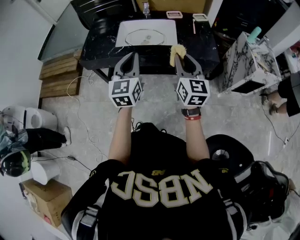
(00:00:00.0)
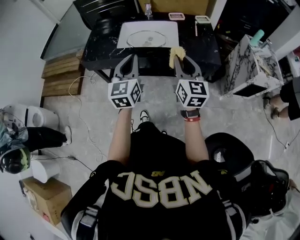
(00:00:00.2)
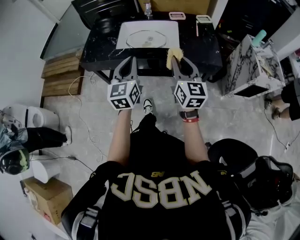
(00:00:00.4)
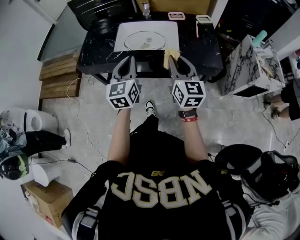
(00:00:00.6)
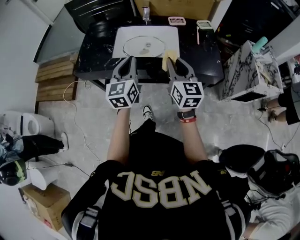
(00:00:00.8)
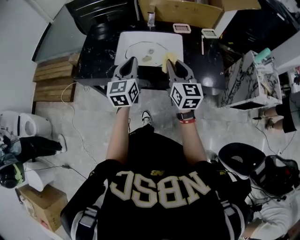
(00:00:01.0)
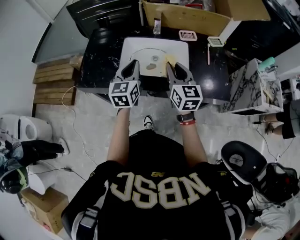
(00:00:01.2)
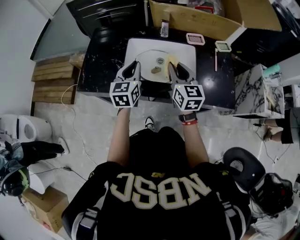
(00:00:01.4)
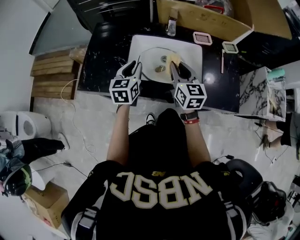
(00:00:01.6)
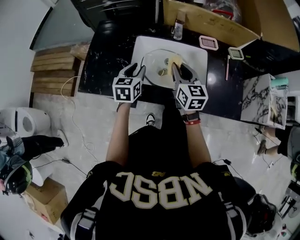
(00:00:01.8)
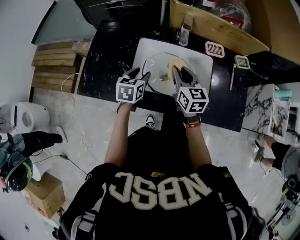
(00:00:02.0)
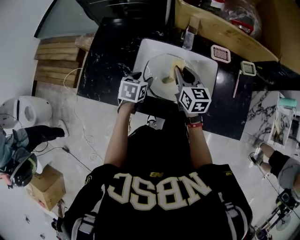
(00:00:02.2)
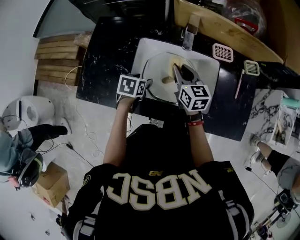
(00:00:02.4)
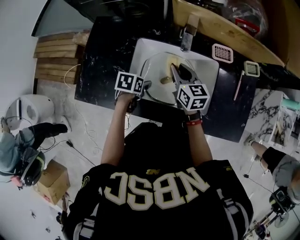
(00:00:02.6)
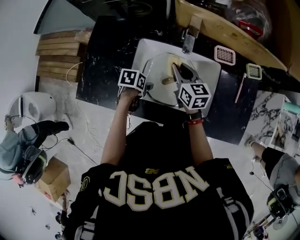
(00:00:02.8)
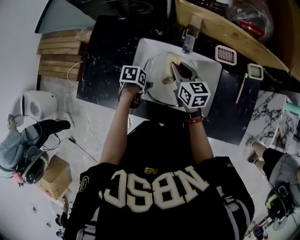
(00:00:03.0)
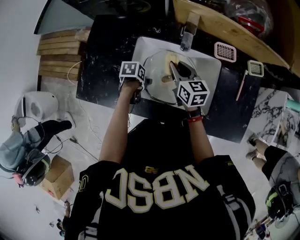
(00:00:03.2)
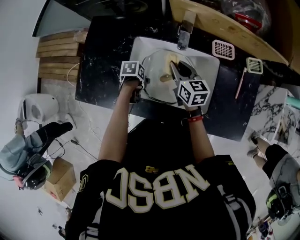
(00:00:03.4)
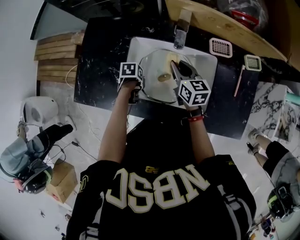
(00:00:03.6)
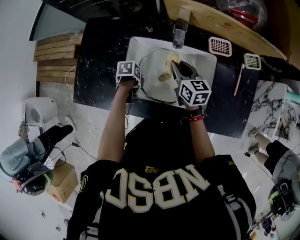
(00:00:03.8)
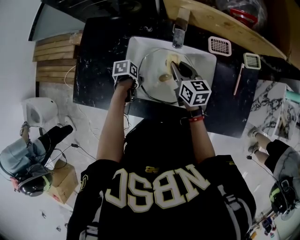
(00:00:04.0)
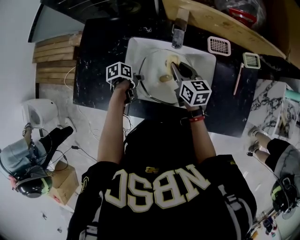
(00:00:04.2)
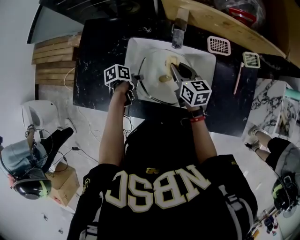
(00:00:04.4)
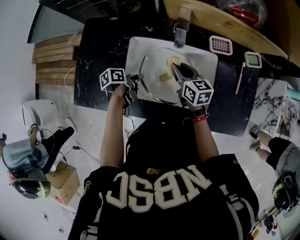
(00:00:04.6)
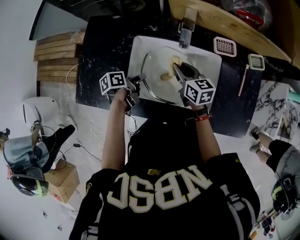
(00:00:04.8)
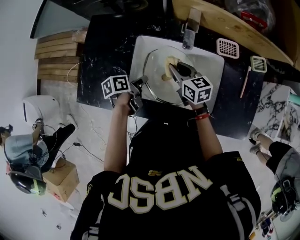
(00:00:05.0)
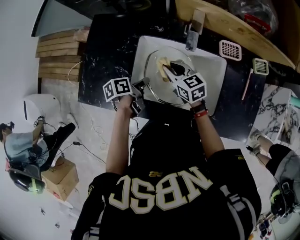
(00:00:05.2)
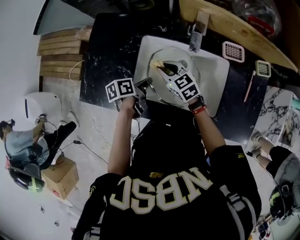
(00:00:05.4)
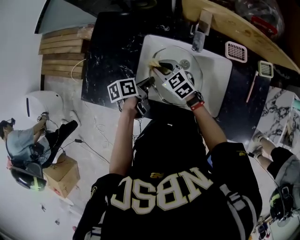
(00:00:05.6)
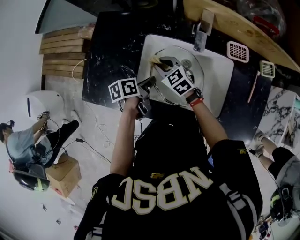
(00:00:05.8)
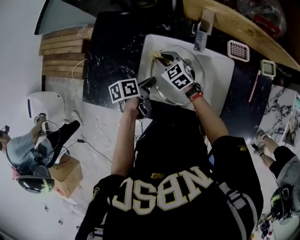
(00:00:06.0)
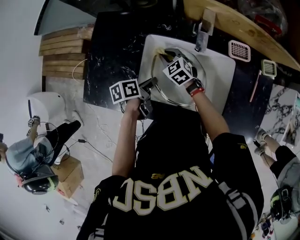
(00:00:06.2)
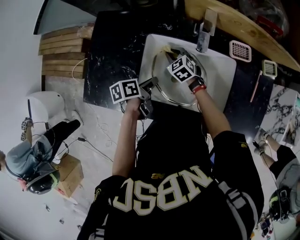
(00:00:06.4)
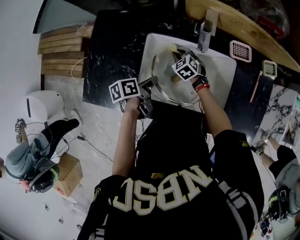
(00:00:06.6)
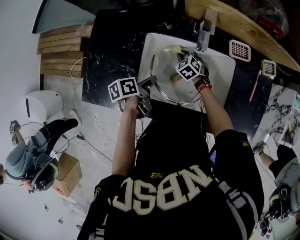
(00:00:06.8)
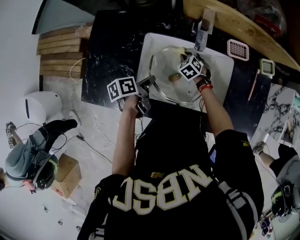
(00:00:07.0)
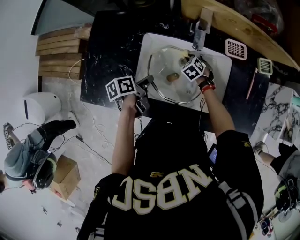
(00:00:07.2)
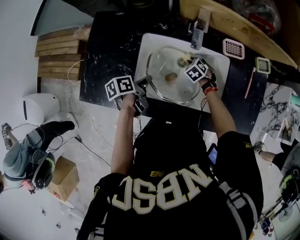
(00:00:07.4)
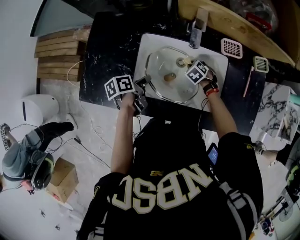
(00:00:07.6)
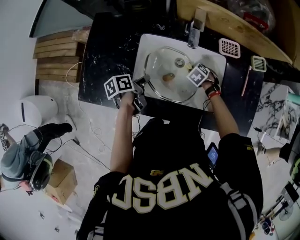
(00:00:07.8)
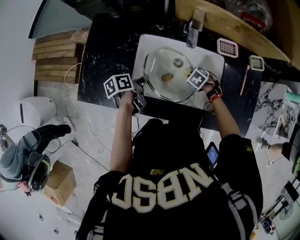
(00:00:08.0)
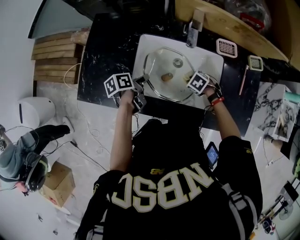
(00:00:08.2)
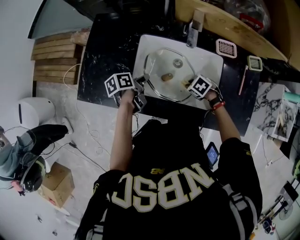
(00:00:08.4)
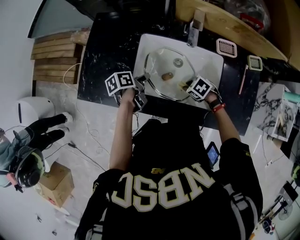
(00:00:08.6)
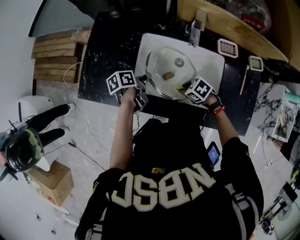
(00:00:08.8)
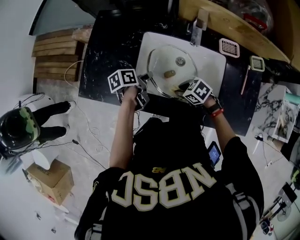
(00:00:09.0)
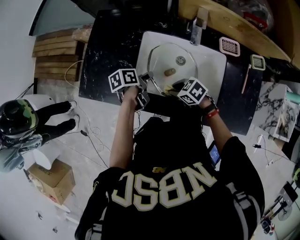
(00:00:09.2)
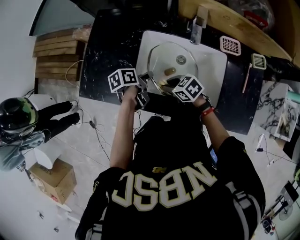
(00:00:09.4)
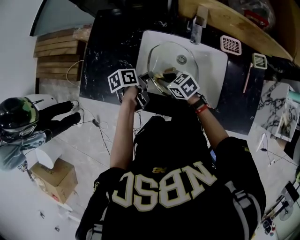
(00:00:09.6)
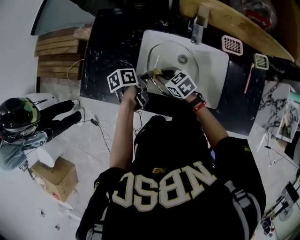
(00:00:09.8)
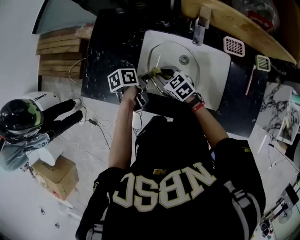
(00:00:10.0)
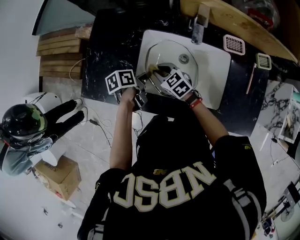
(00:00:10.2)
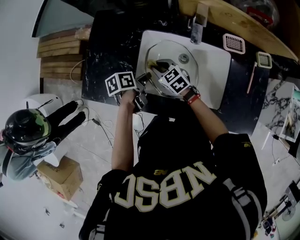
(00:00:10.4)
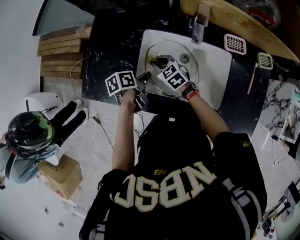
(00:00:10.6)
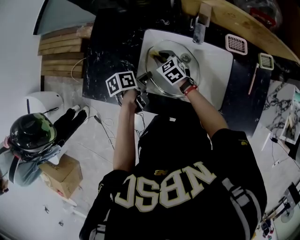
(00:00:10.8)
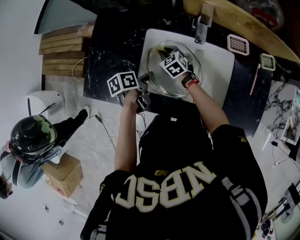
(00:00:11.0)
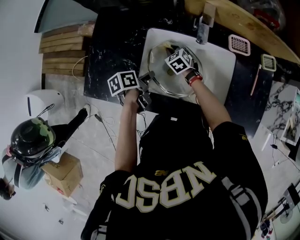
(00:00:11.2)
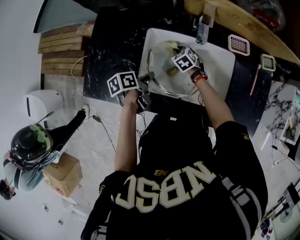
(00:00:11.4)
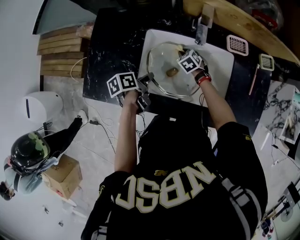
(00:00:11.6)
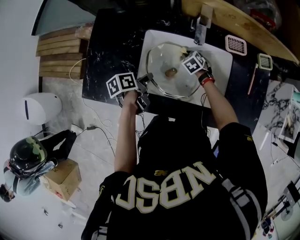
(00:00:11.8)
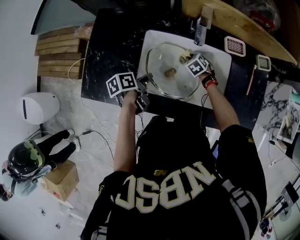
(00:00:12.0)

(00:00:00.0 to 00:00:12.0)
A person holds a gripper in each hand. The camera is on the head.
00:00:00.0 - 00:00:01.6: The right gripper moves roughly 35 cm.
00:00:01.6 - 00:00:03.0: The right gripper shifts by some 20 cm, and rotates about 20 degrees.
00:00:04.4 - 00:00:06.0: The right gripper ends up about 15 cm from where it was, and changes its angle by roughly 40 degrees.
00:00:06.0 - 00:00:07.6: The right gripper changes place by some 25 cm, and angles its fingers downward, by about 40 degrees.
00:00:07.6 - 00:00:09.0: The right gripper ends up about 20 cm from where it was, and swivels roughly 40 degrees.
00:00:09.0 - 00:00:10.4: The right gripper moves some 15 cm, and swivels some 30 degrees.
00:00:10.4 - 00:00:12.0: The right gripper moves some 25 cm, and changes its angle by some 30 degrees.

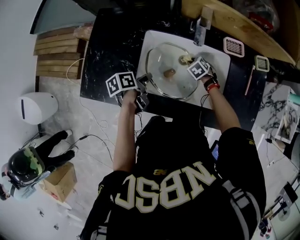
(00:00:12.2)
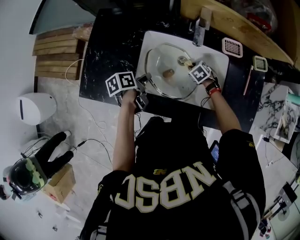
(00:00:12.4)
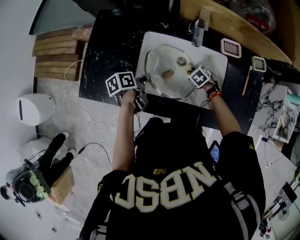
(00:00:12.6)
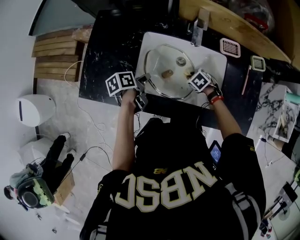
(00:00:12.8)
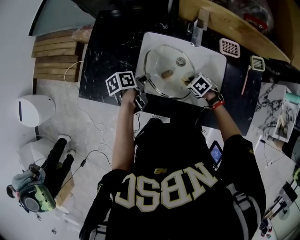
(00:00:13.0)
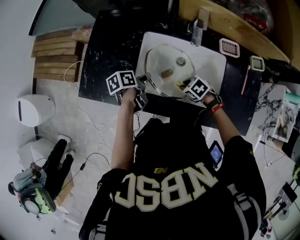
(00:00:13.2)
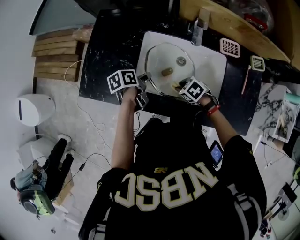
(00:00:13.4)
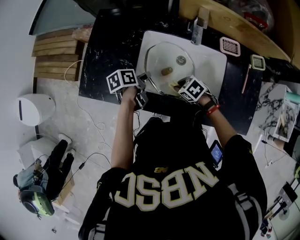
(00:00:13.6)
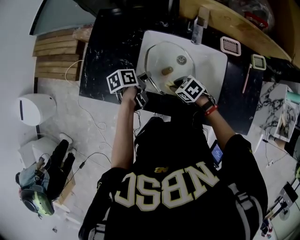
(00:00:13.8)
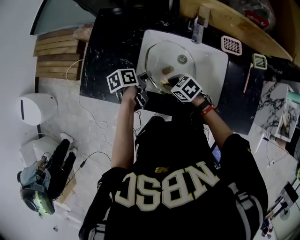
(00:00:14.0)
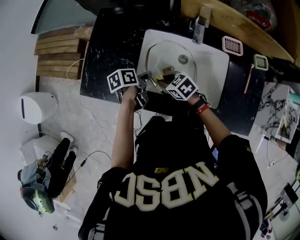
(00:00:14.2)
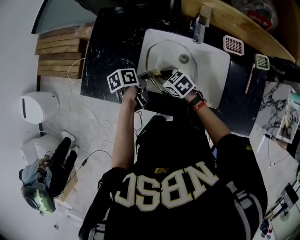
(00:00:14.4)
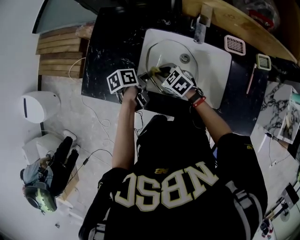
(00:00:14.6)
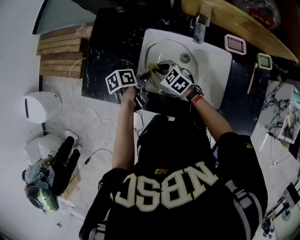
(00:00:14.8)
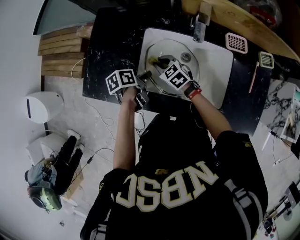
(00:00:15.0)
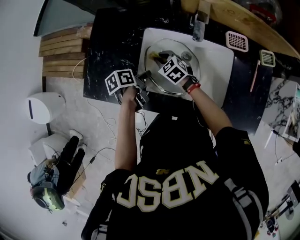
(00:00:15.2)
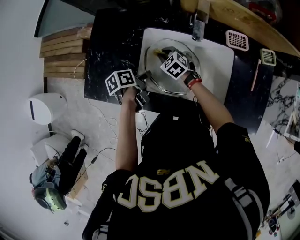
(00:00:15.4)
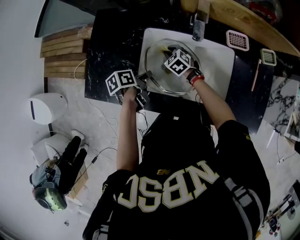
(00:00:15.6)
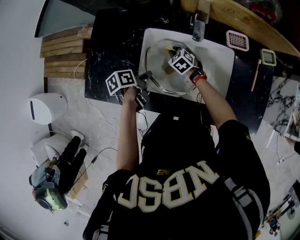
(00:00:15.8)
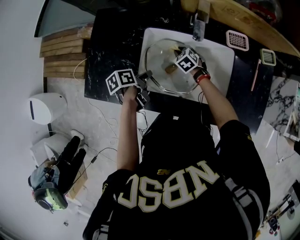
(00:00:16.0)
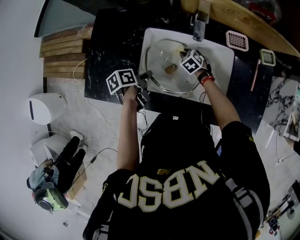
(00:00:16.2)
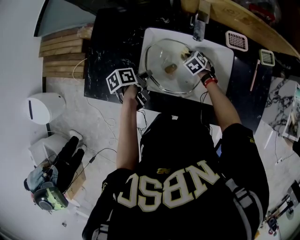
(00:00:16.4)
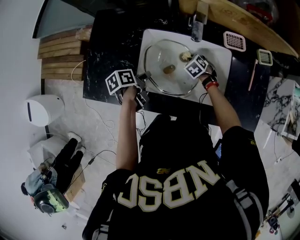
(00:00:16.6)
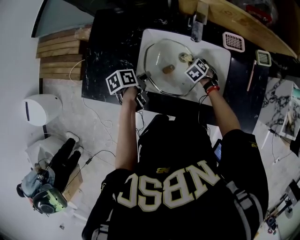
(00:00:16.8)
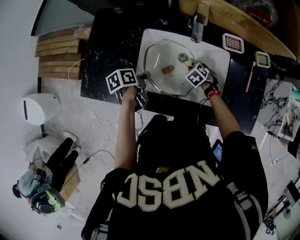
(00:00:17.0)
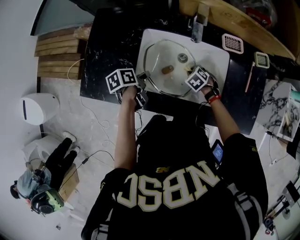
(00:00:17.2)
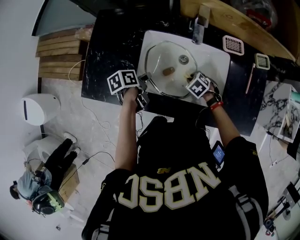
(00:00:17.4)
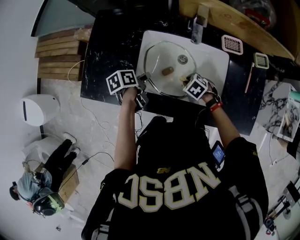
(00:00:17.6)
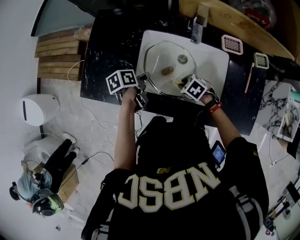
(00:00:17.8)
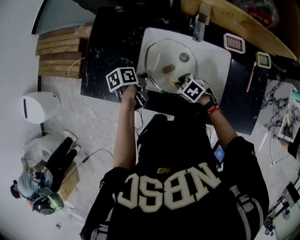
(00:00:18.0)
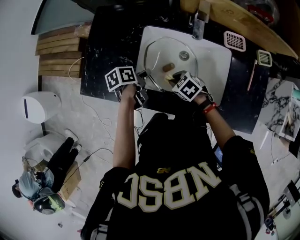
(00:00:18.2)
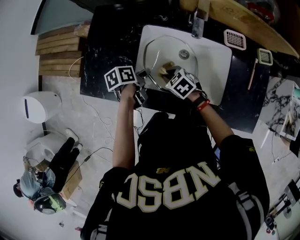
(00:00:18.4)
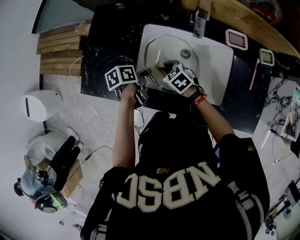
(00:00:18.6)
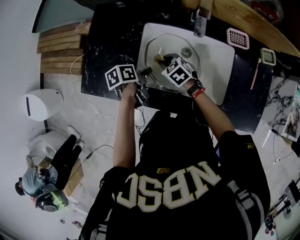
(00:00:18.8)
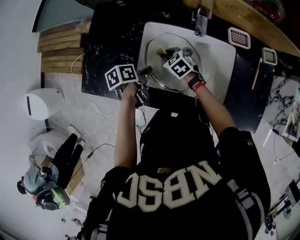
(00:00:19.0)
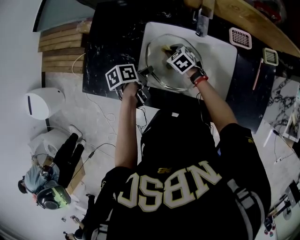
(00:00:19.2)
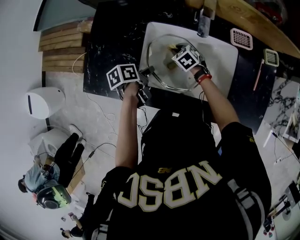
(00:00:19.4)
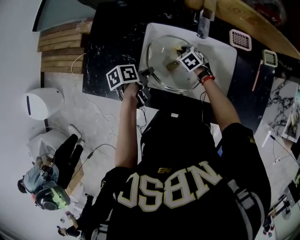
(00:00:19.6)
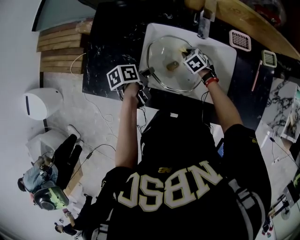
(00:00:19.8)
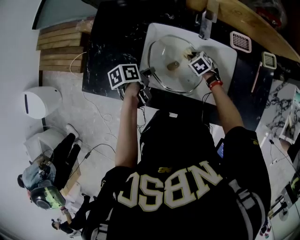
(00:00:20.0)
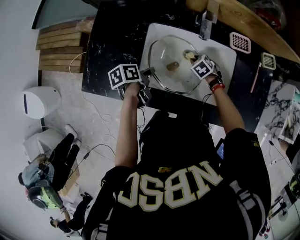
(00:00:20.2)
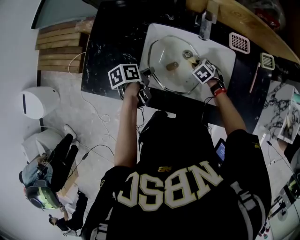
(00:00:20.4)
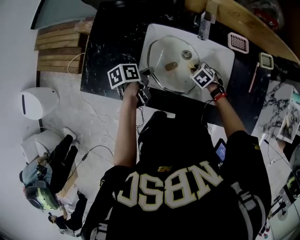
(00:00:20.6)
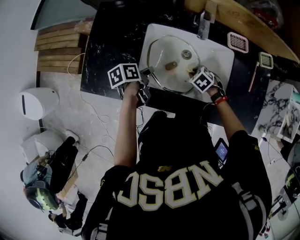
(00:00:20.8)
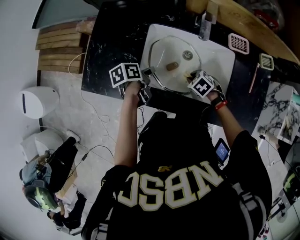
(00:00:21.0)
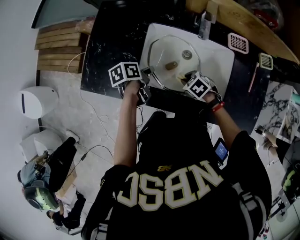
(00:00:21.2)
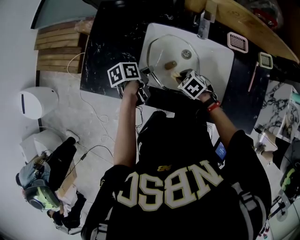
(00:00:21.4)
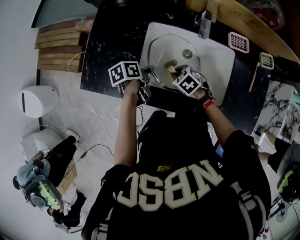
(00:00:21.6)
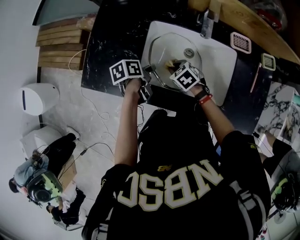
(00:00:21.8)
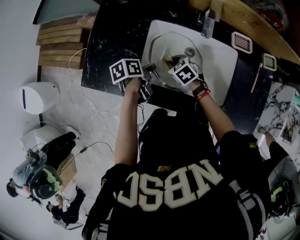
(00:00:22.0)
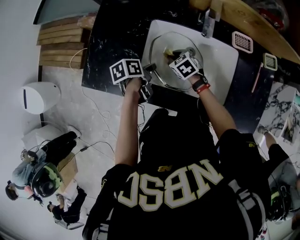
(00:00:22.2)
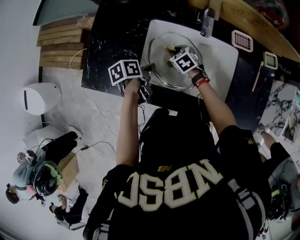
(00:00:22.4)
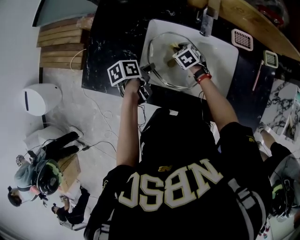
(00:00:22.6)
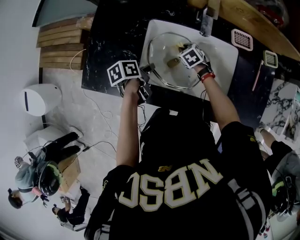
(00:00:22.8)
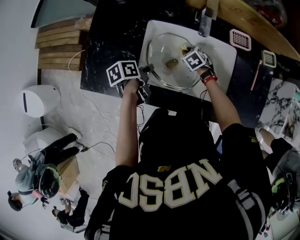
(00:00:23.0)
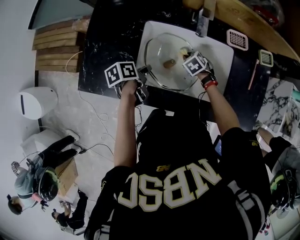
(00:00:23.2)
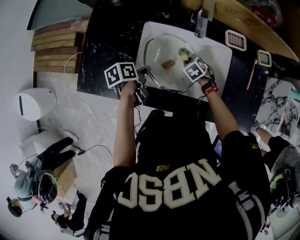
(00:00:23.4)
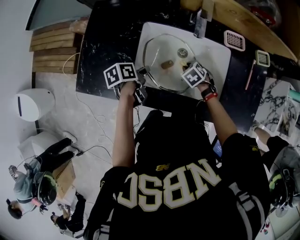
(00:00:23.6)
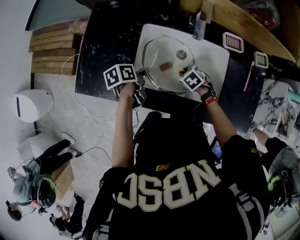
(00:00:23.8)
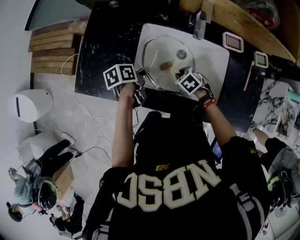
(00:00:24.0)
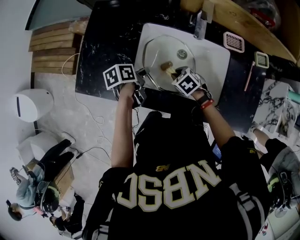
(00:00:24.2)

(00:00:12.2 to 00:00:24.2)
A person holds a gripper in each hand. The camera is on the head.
00:00:12.2 - 00:00:13.8: The right gripper shifts by about 20 cm, and changes its angle by roughly 30 degrees.
00:00:13.8 - 00:00:15.2: The right gripper changes place by about 15 cm, and rotates about 30 degrees.
00:00:15.2 - 00:00:16.6: The right gripper changes place by about 20 cm, and changes its angle by approximately 30 degrees.
00:00:16.6 - 00:00:18.2: The right gripper changes place by about 20 cm, and rotates roughly 30 degrees.
00:00:18.2 - 00:00:19.8: The right gripper changes place by roughly 15 cm.
00:00:19.8 - 00:00:21.2: The right gripper moves approximately 15 cm.
00:00:21.2 - 00:00:22.6: The right gripper changes place by approximately 15 cm.
00:00:22.6 - 00:00:24.2: The right gripper changes place by roughly 15 cm.
